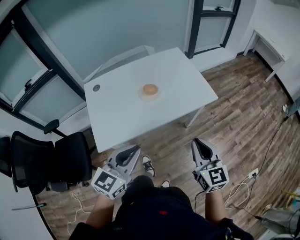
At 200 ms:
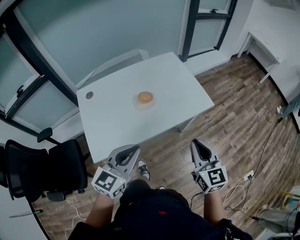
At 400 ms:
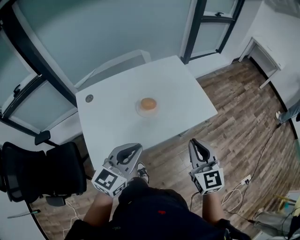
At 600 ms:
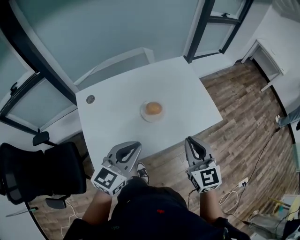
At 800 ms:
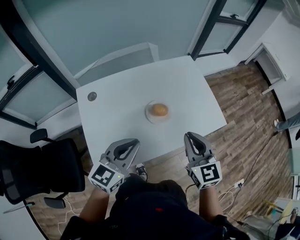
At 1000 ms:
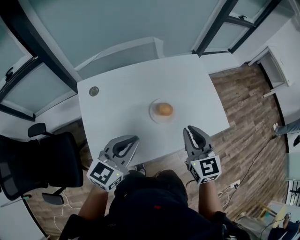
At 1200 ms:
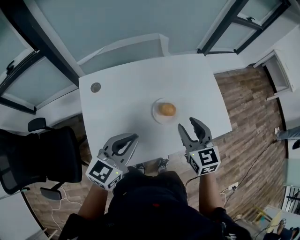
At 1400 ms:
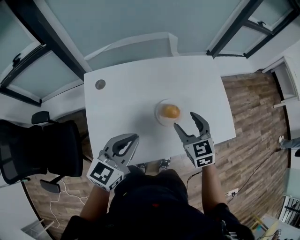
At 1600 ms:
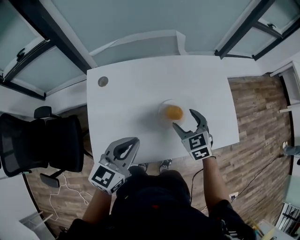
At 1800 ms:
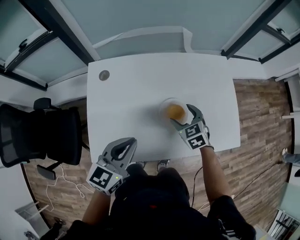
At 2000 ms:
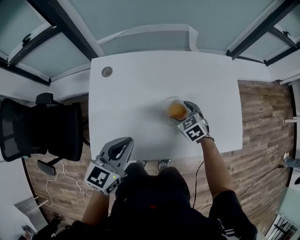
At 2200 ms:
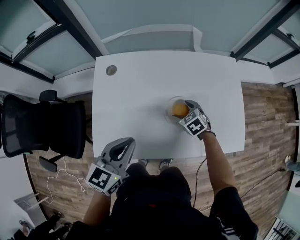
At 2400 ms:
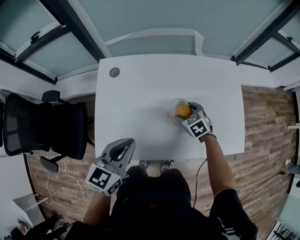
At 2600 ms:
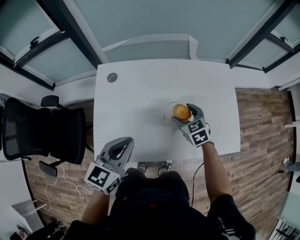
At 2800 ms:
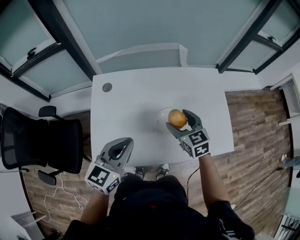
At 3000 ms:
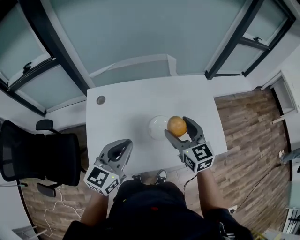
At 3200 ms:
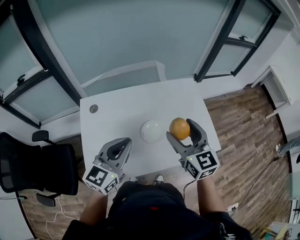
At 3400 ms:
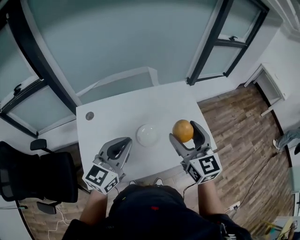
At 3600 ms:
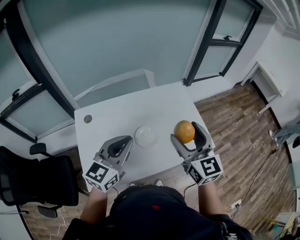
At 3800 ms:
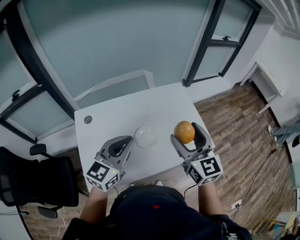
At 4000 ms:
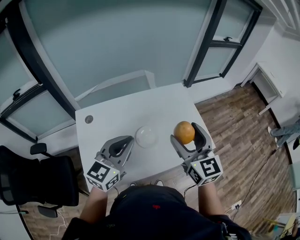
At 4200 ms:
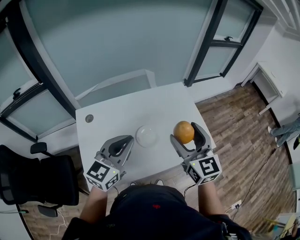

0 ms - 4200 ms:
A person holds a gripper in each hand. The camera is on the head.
0 ms - 1400 ms: Both grippers move forward and to the left, some 35 cm. The right gripper changes its angle by about 30 degrees, and opens its fingers.
1400 ms - 2800 ms: The right gripper travels downward and back again, about 20 cm each way.
2800 ms - 4200 ms: The left gripper heads upward and to the right, covering about 10 cm, while the right gripper shifts approximately 25 cm upward, to the right and backward, and turns by some 30 degrees.

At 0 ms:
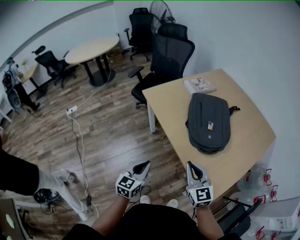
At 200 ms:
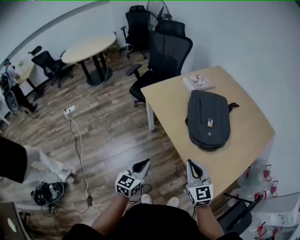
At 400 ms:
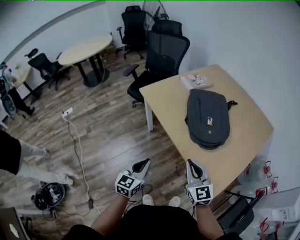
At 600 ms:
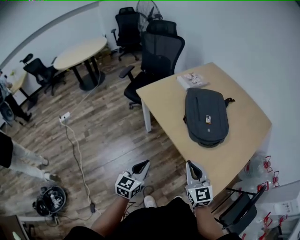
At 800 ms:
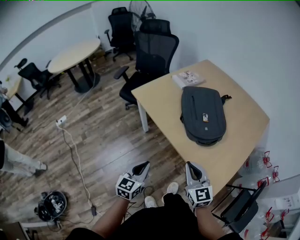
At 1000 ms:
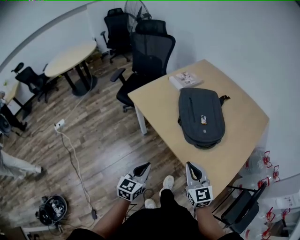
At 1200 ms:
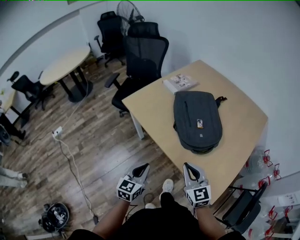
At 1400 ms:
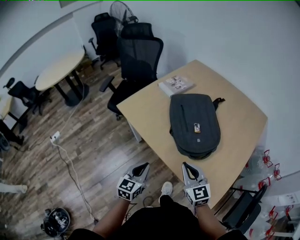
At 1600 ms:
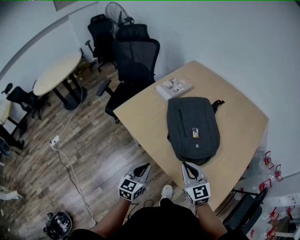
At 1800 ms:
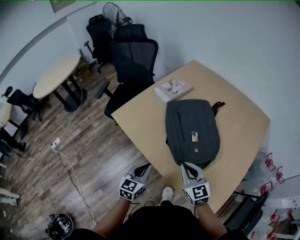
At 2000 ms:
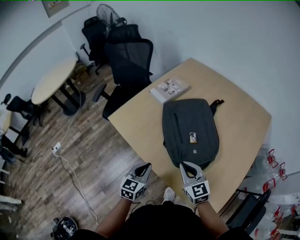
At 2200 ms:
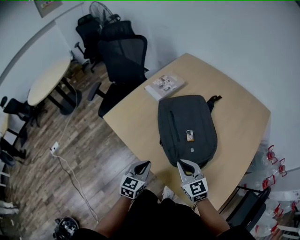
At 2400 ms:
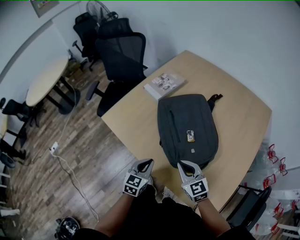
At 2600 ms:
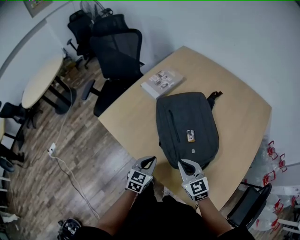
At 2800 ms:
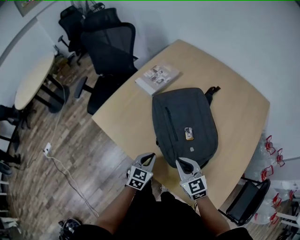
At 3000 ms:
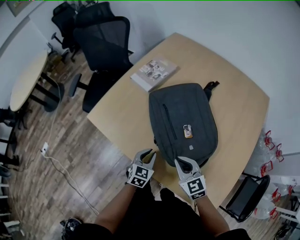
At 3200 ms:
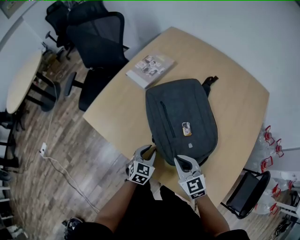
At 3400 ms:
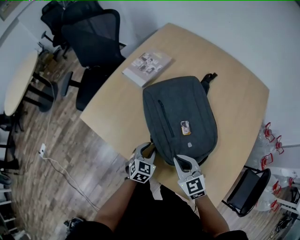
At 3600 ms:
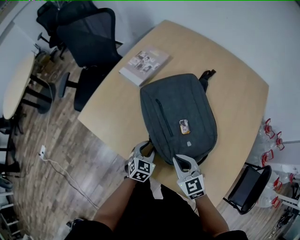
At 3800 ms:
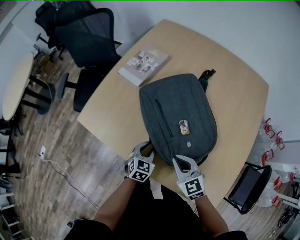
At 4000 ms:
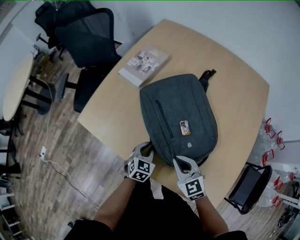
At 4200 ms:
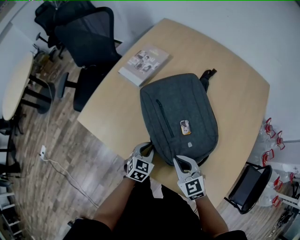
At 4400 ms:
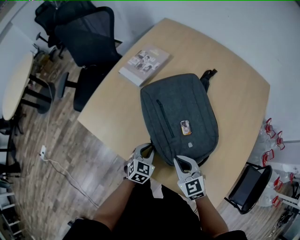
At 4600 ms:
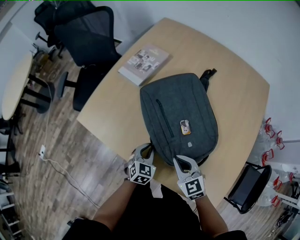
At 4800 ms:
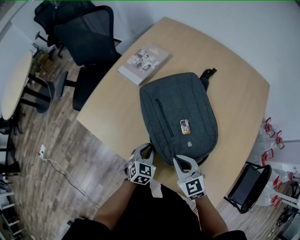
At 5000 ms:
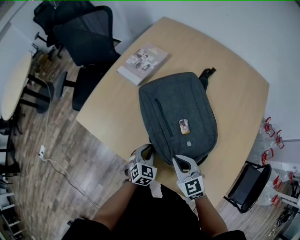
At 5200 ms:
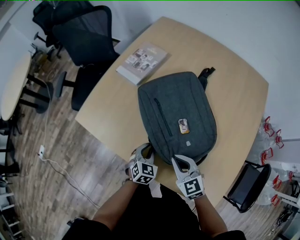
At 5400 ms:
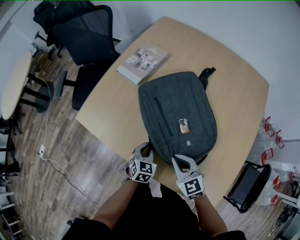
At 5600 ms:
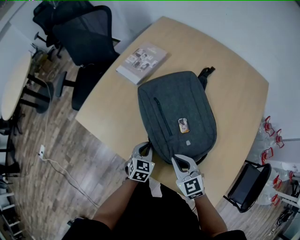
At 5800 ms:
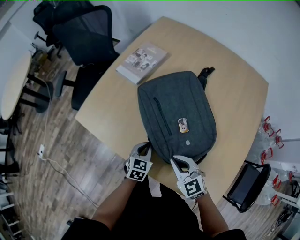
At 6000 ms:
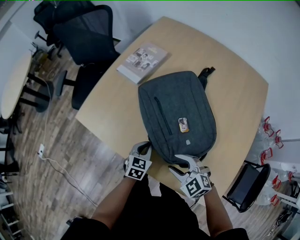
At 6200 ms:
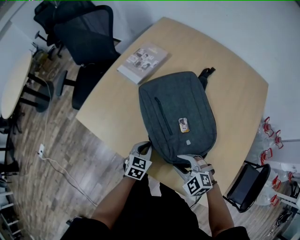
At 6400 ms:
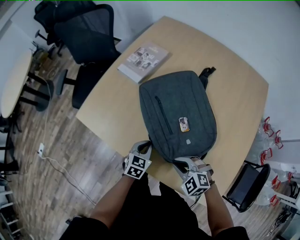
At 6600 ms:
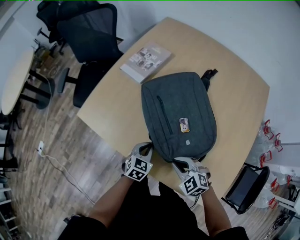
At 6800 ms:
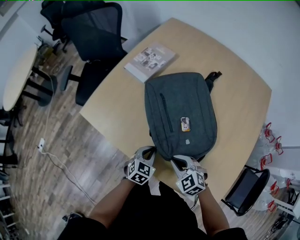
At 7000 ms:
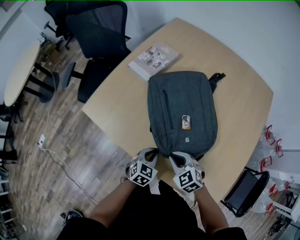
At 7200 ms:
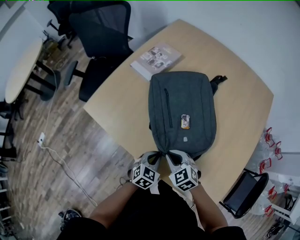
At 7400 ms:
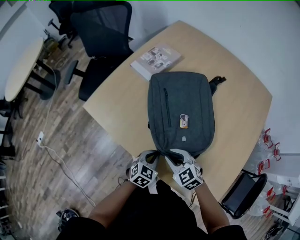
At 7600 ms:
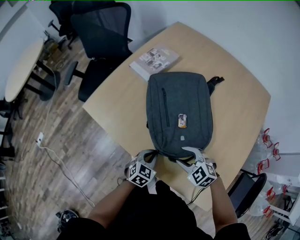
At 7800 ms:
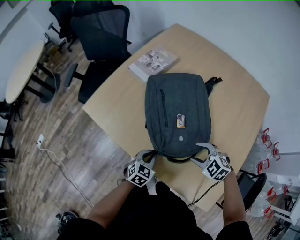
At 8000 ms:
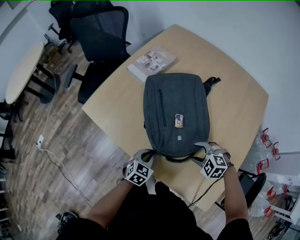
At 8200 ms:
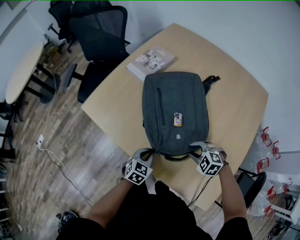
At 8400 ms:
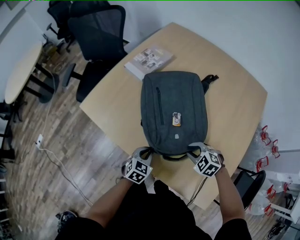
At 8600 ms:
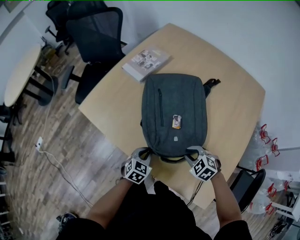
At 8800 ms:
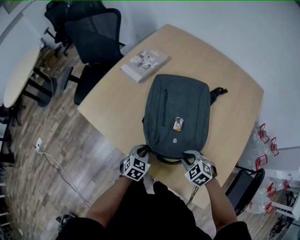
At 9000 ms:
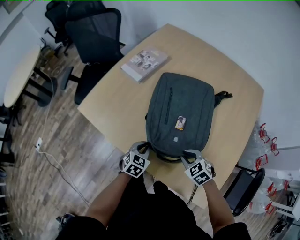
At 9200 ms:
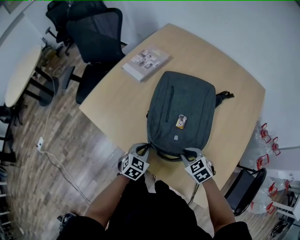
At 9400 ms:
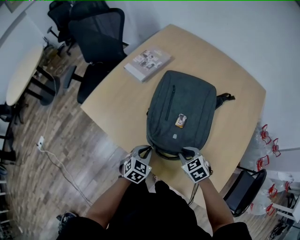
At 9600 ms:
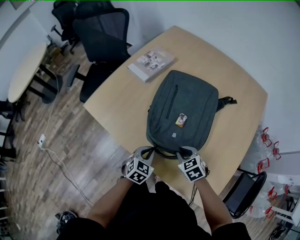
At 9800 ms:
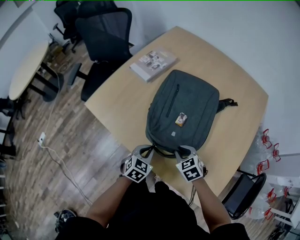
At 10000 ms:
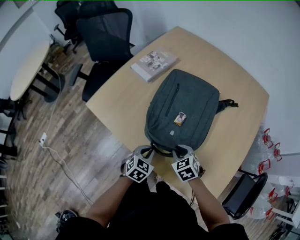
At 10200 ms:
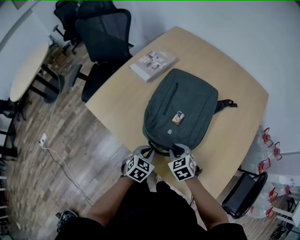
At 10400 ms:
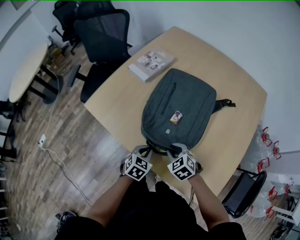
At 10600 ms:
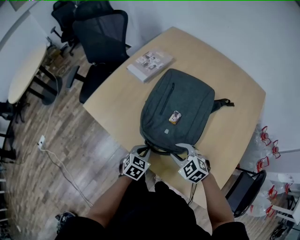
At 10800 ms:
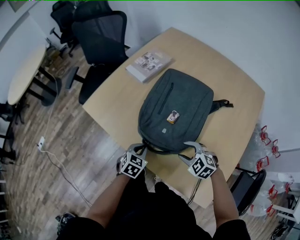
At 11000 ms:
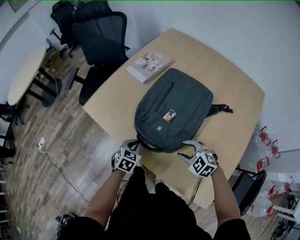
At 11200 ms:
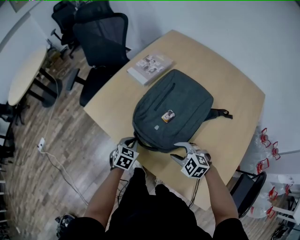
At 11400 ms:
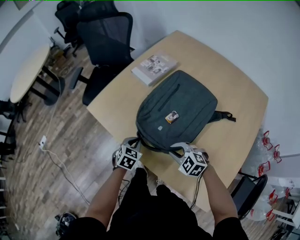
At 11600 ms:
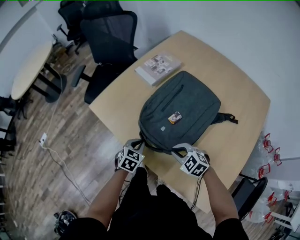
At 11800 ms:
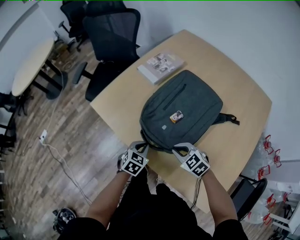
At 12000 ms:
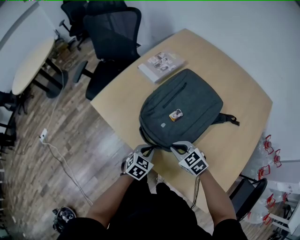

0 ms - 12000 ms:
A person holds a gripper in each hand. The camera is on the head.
0 ms - 1600 ms: Both grippers move forward, about 15 cm.
1600 ms - 3000 ms: The left gripper goes some 20 cm forward, downward and to the right, and changes its angle by some 20 degrees. The right gripper heads forward and downward, covering some 10 cm.
3000 ms - 4400 ms: There are only small adjustments of the grippers.
4400 ms - 6000 ms: The right gripper swivels roughly 30 degrees, and opens.
6000 ms - 7600 ms: The left gripper goes approximately 5 cm backward. Meanwhile the right gripper closes and opens again.
7600 ms - 9000 ms: The right gripper moves to the right, about 5 cm, changes its angle by some 20 degrees, and closes up.
9000 ms - 10400 ms: The right gripper moves to the left, some 10 cm.
10400 ms - 12000 ms: The right gripper travels to the right and back again, about 5 cm each way, and opens and closes again, while the left gripper moves about 10 cm forward and comes back.

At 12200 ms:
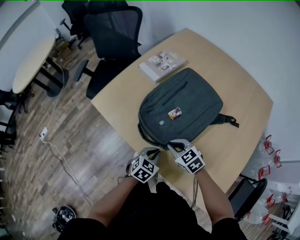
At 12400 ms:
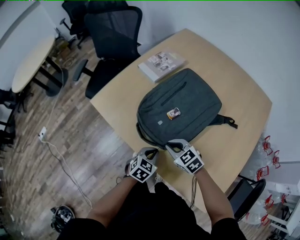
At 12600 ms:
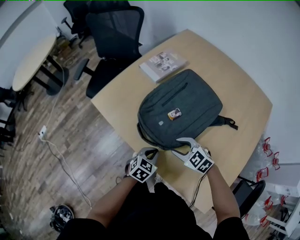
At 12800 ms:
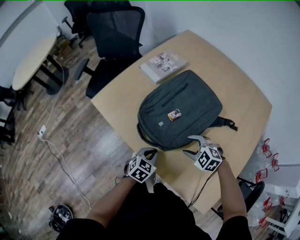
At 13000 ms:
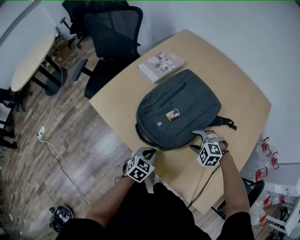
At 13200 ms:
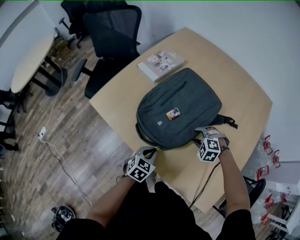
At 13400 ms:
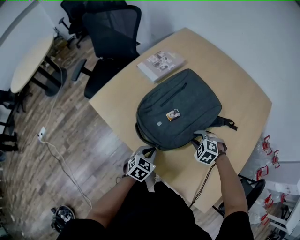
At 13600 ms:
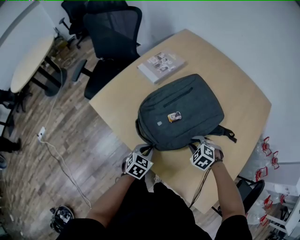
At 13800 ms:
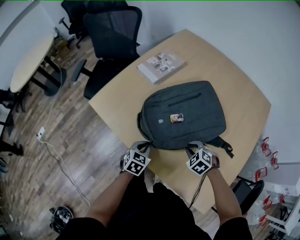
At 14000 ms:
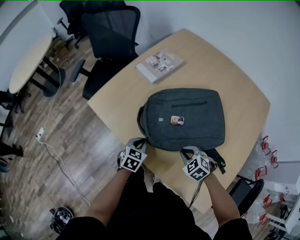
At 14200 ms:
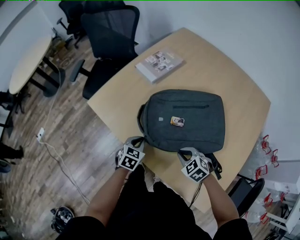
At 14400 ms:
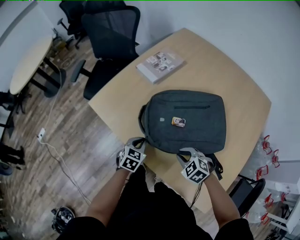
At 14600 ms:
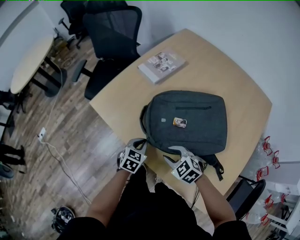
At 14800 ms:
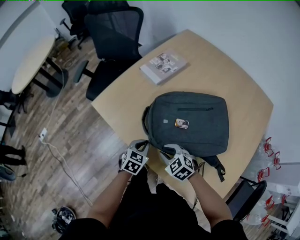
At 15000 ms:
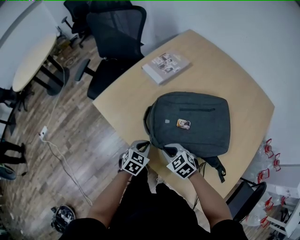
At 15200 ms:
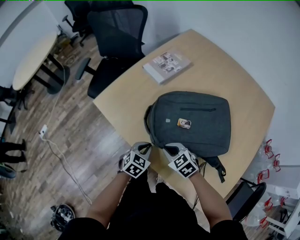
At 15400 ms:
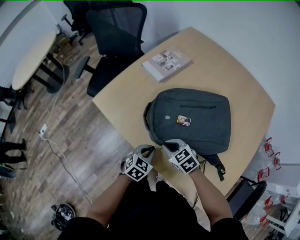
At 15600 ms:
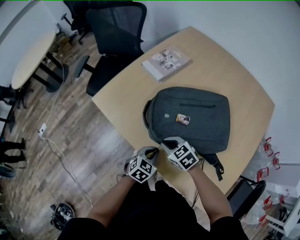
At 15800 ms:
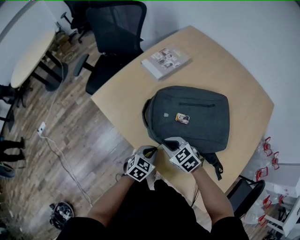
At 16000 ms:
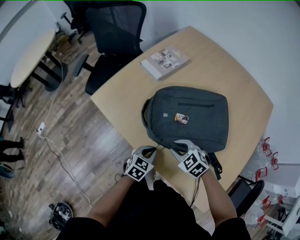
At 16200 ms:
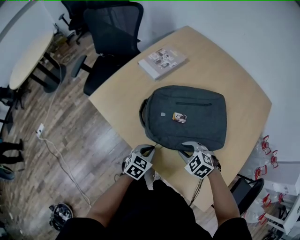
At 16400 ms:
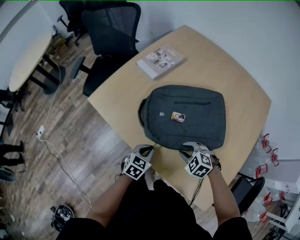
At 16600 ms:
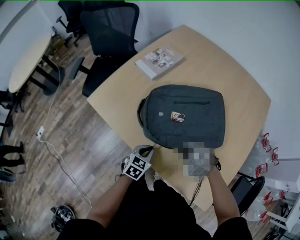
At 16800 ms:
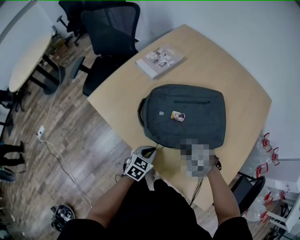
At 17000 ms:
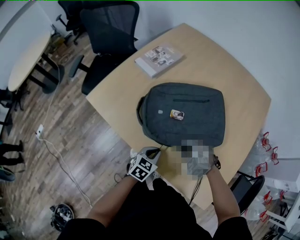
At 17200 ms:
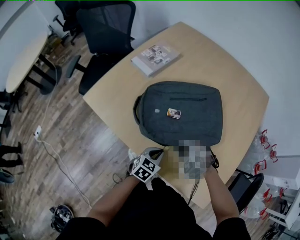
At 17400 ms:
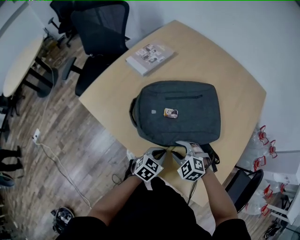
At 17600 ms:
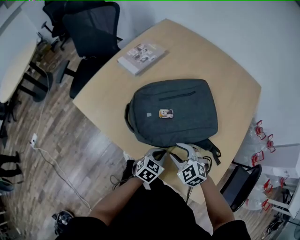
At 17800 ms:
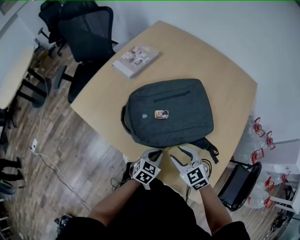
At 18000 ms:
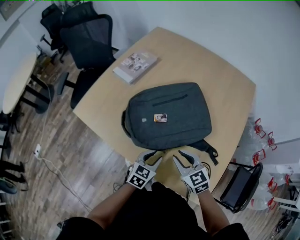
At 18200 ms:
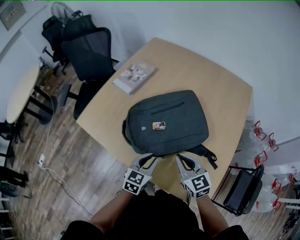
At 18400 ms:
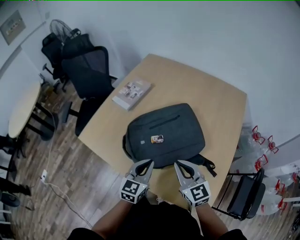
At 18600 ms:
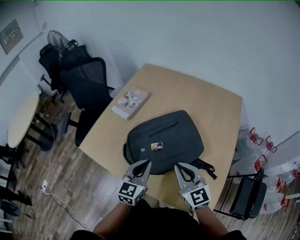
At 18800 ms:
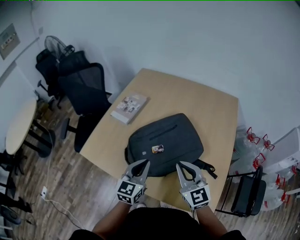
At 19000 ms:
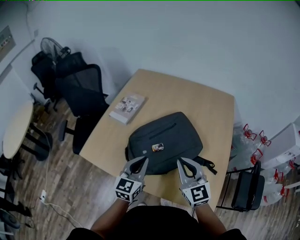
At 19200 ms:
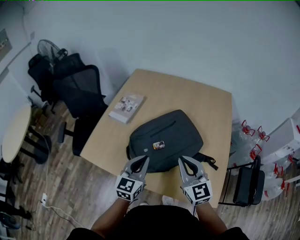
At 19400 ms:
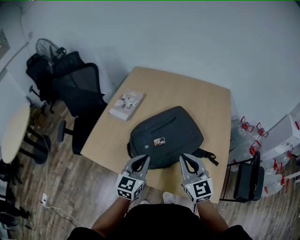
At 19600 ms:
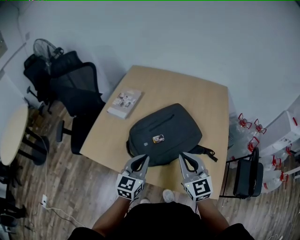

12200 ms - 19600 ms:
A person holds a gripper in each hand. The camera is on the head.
12200 ms - 13600 ms: The right gripper is displaced to the right by approximately 10 cm, swivels about 40 degrees, and opens, then closes again.
13600 ms - 15200 ms: The right gripper shifts about 15 cm to the left, and changes its angle by some 30 degrees.
15200 ms - 16600 ms: The right gripper shifts about 10 cm to the right, and turns by about 30 degrees; the left gripper changes place by some 5 cm.
16600 ms - 18200 ms: The left gripper goes approximately 15 cm to the right and upward, while the right gripper goes approximately 15 cm upward and to the right, tips its fingers upward by some 40 degrees, and closes its fingers.
18200 ms - 19600 ms: The right gripper heads upward, covering about 10 cm, and rotates some 30 degrees. The left gripper travels upward and to the left by about 15 cm, and closes up.
